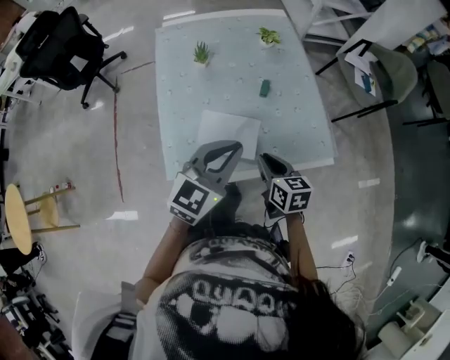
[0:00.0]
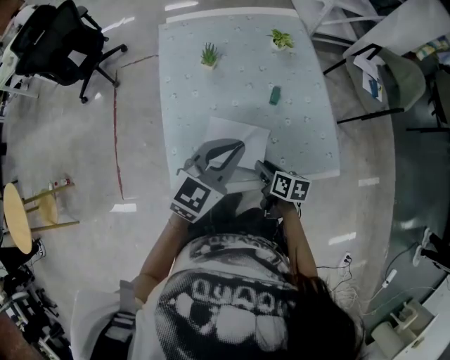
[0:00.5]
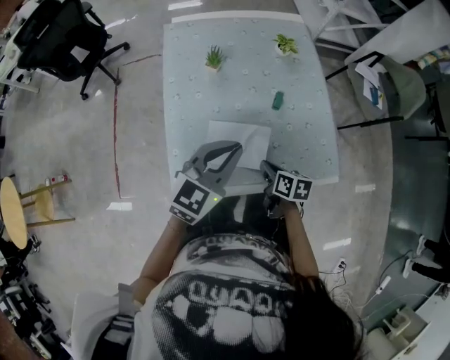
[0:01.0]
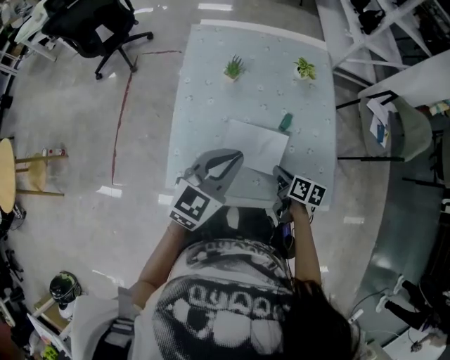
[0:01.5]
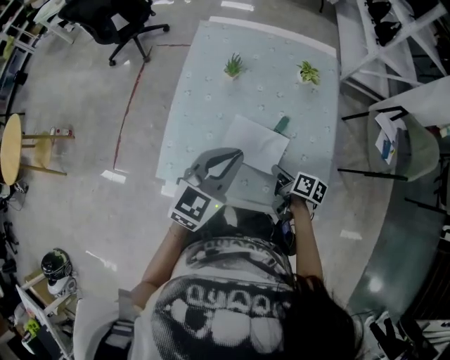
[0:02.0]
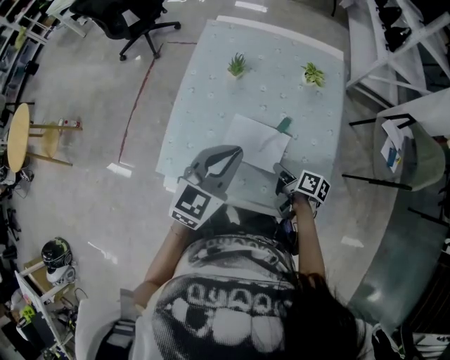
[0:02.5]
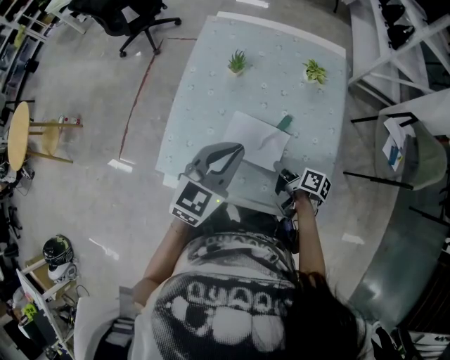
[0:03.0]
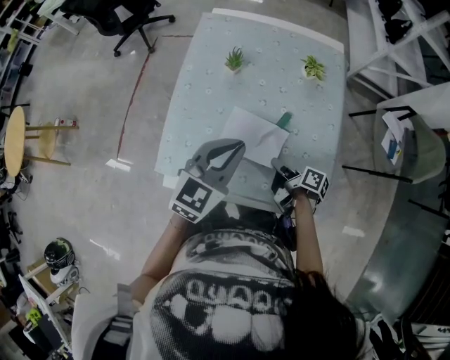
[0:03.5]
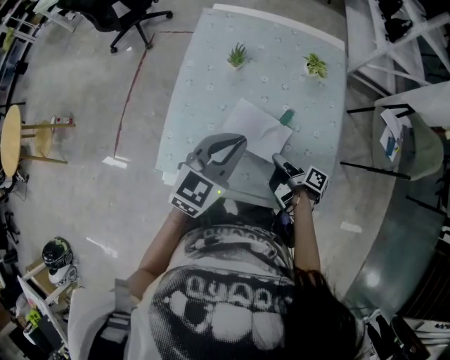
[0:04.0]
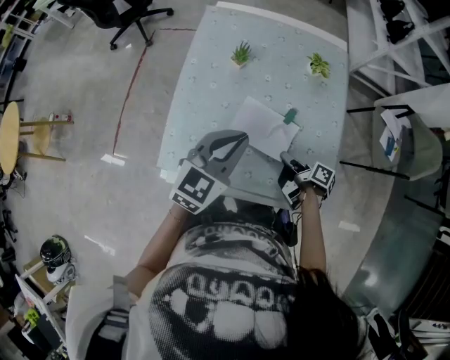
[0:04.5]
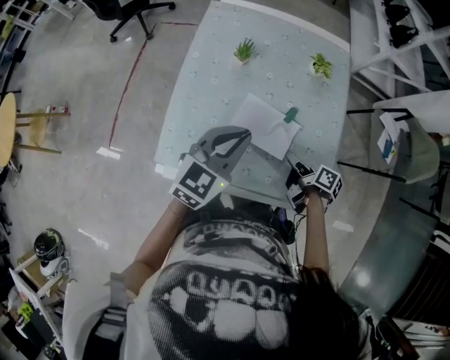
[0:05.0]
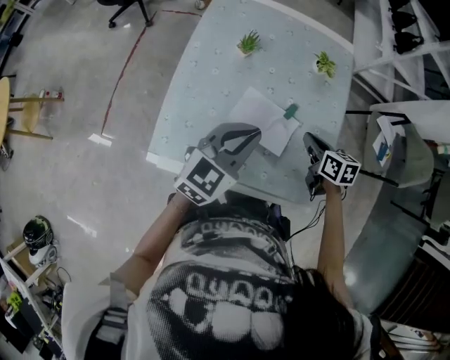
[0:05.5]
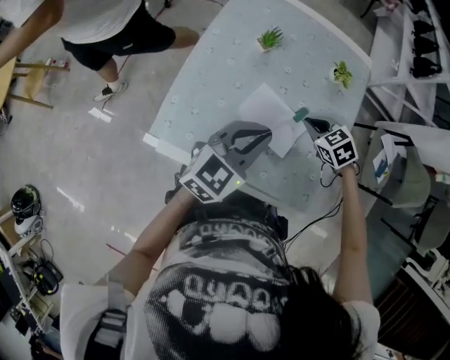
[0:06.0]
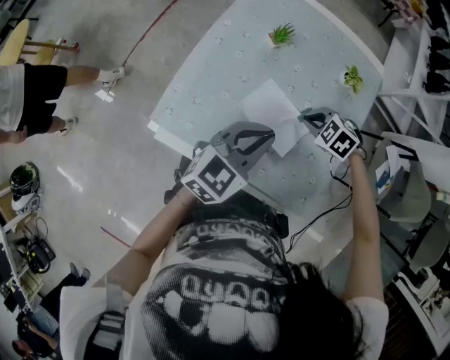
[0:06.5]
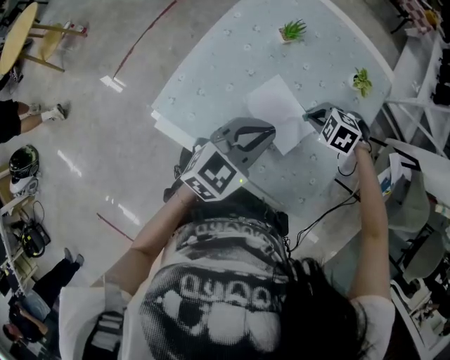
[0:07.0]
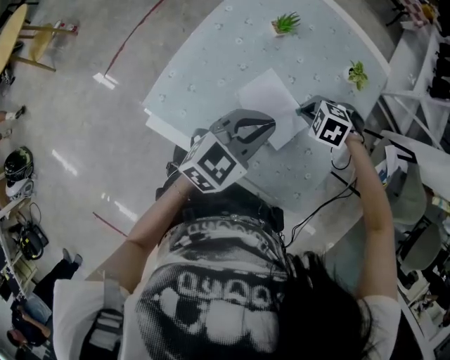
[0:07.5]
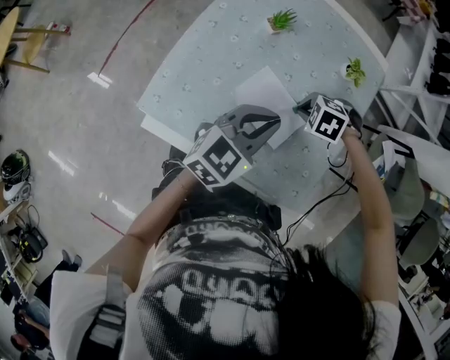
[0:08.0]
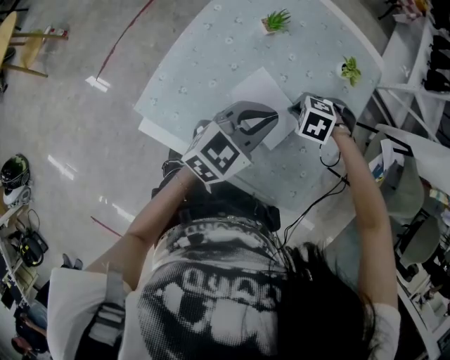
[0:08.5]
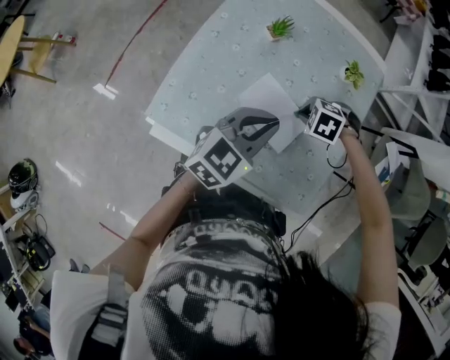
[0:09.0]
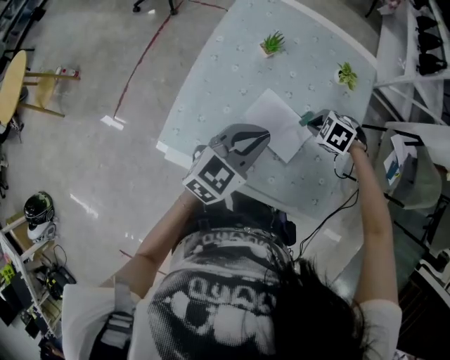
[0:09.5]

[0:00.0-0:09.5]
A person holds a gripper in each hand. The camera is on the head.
0:00.0 to 0:02.0: The left gripper is displaced forward by about 10 cm, and turns by some 20 degrees; the right gripper travels forward, downward and to the right by about 15 cm, and rotates about 40 degrees.
0:02.0 to 0:04.0: The right gripper changes its angle by approximately 30 degrees.
0:04.0 to 0:05.5: The right gripper shifts about 10 cm forward, to the right and upward, rolls counterclockwise, seen from behind, by some 60 degrees, and opens, then closes again.
0:05.5 to 0:07.5: The right gripper shifts by some 10 cm, and twists some 90 degrees counterclockwise, seen from behind; the left gripper shifts by approximately 5 cm.
0:07.5 to 0:09.5: The grippers stay close to where they were, moving slightly.

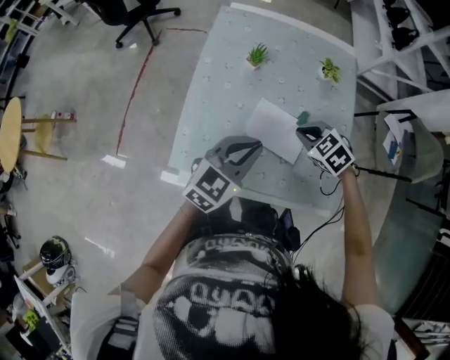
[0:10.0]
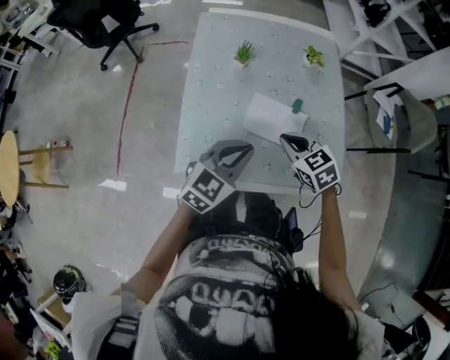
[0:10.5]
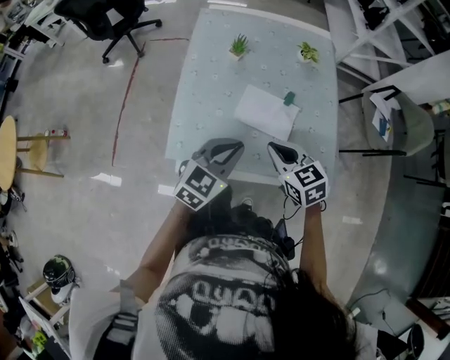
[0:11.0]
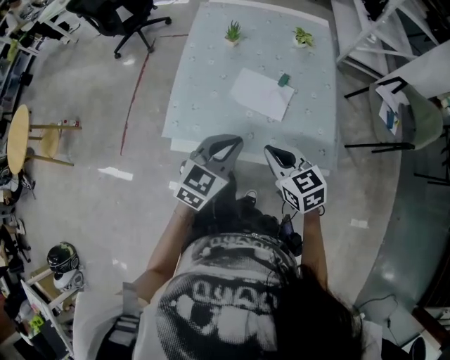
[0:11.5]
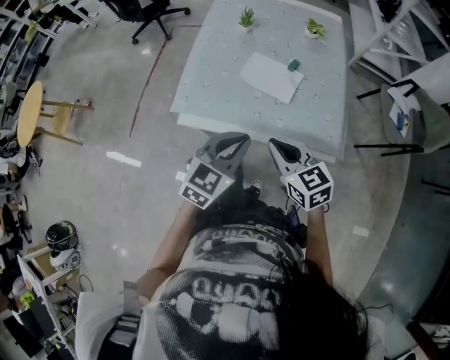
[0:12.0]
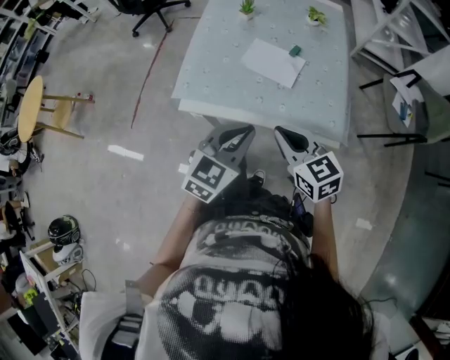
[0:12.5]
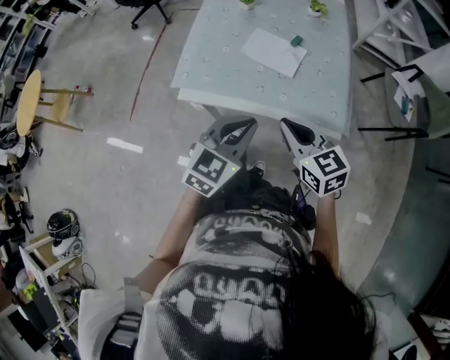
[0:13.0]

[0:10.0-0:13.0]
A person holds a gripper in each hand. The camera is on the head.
0:10.0 to 0:11.5: The right gripper is displaced backward by roughly 20 cm, and turns by some 40 degrees, while the left gripper heads backward, covering some 15 cm.
0:11.5 to 0:13.0: Both grippers move backward, some 10 cm.

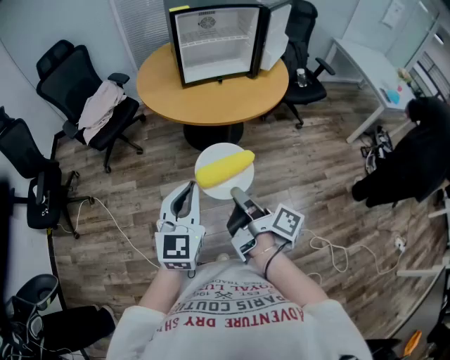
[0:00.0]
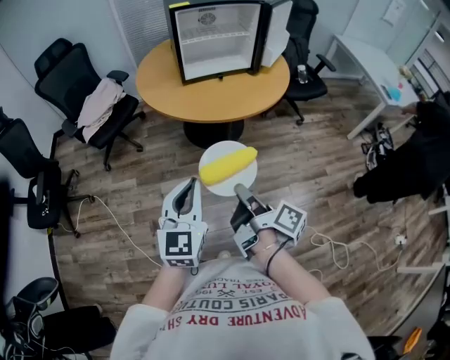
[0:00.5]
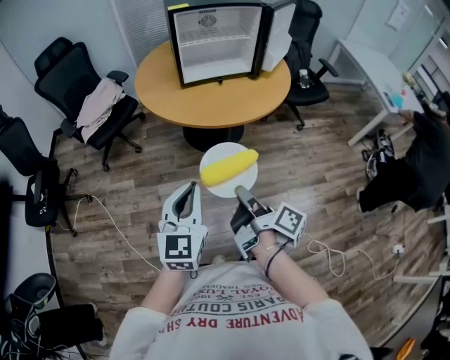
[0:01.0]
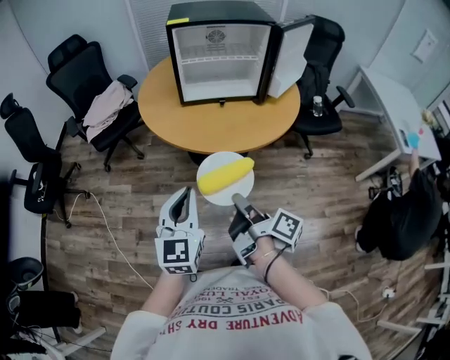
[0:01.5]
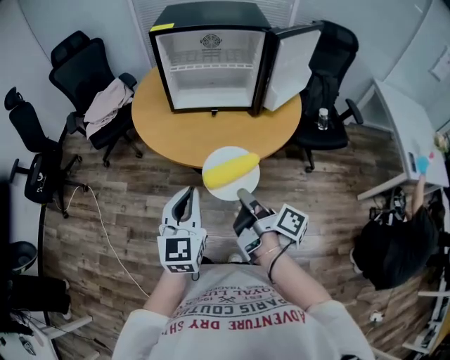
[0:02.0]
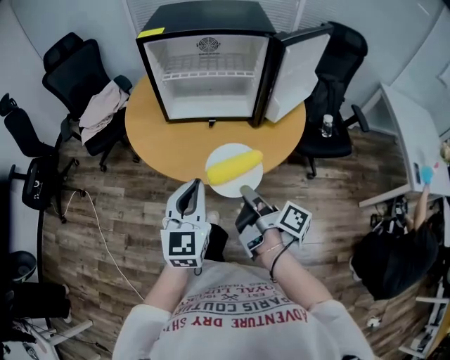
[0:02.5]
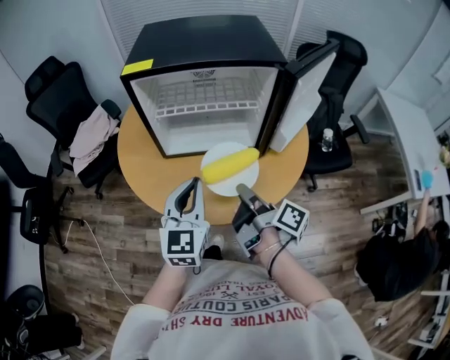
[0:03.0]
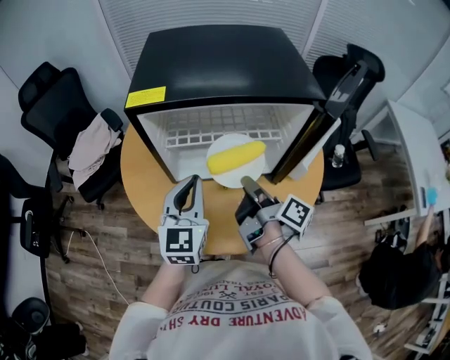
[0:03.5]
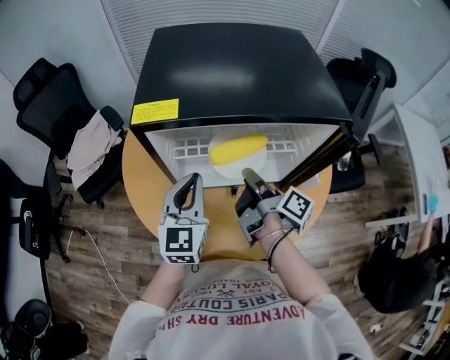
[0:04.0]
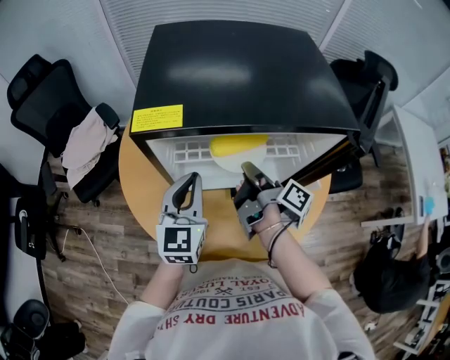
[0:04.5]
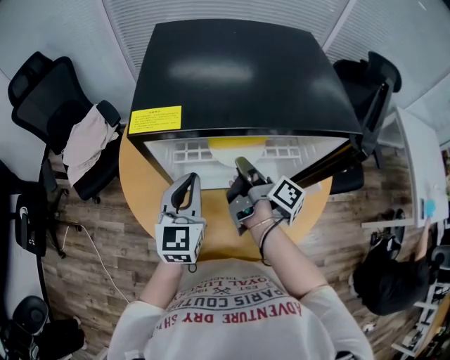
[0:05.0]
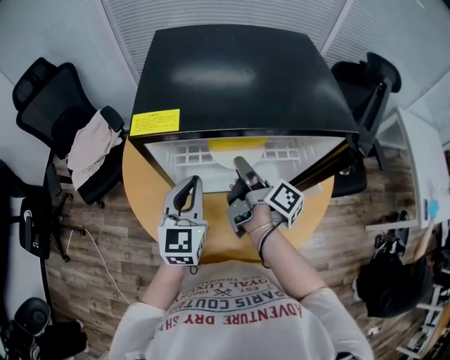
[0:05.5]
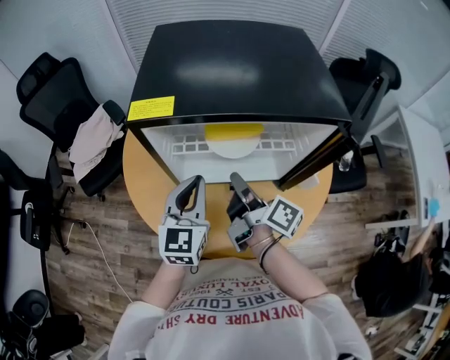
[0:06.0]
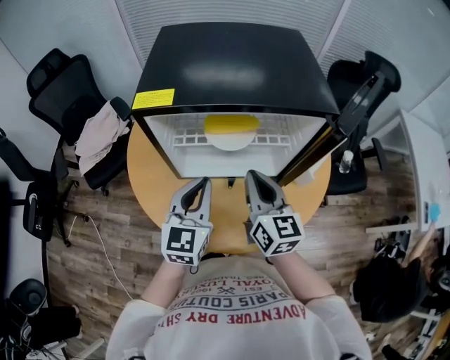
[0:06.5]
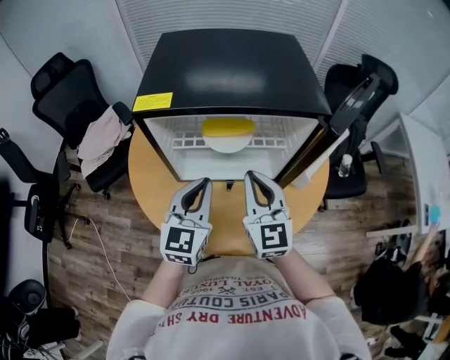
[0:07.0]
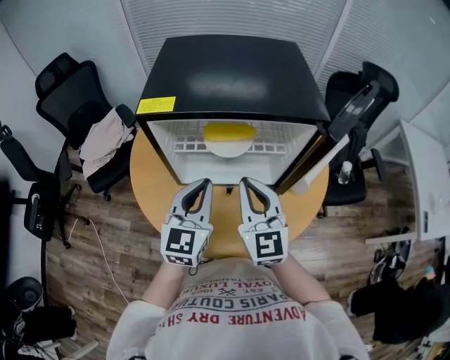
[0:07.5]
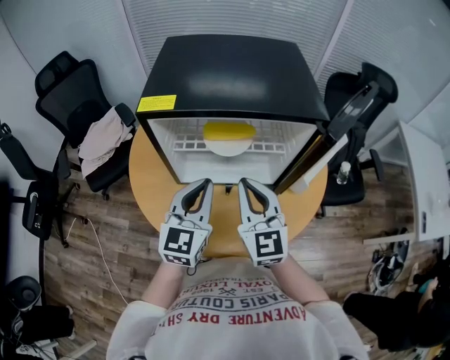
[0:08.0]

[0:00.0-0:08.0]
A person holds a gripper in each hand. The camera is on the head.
0:00.0 to 0:02.0: The left gripper ends up about 30 cm from where it was.
0:02.0 to 0:04.0: The left gripper shifts by some 40 cm.
0:06.0 to 0:08.0: The left gripper moves roughly 5 cm.

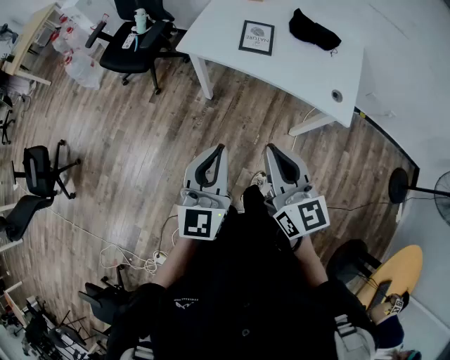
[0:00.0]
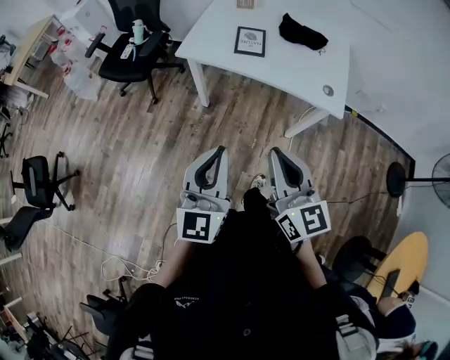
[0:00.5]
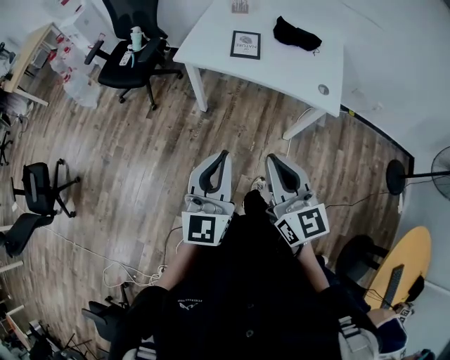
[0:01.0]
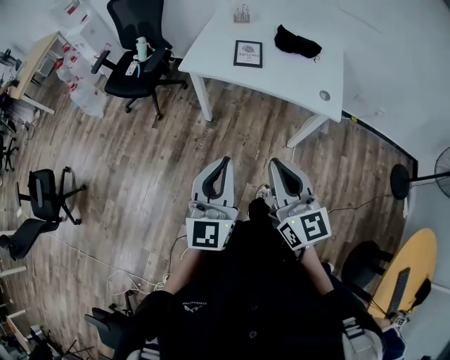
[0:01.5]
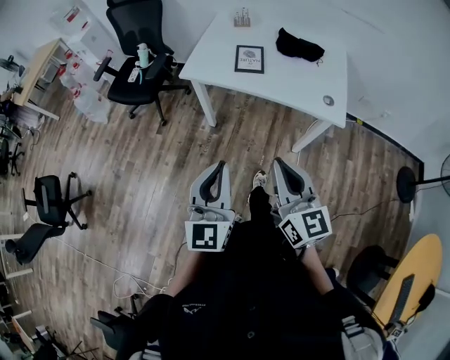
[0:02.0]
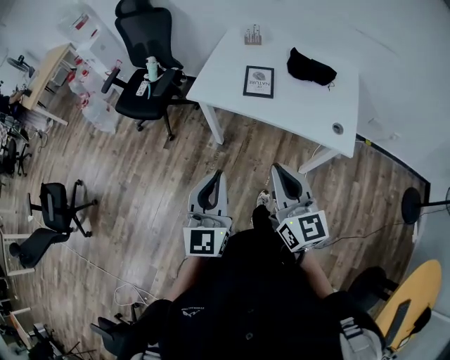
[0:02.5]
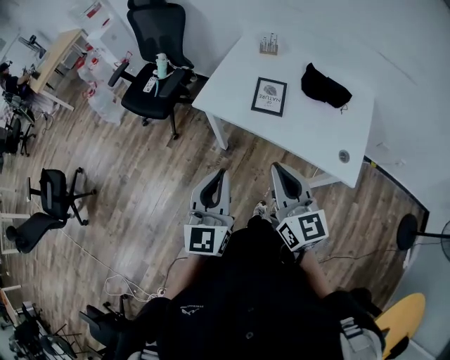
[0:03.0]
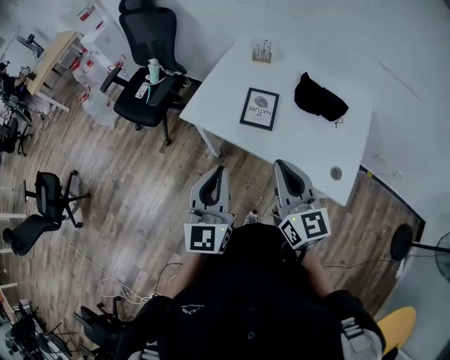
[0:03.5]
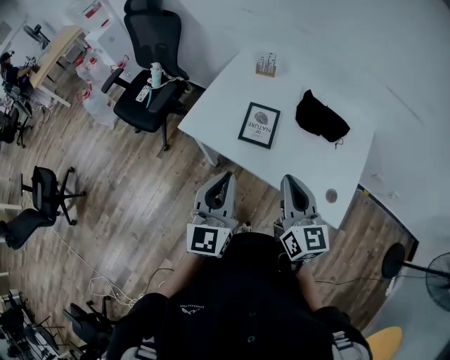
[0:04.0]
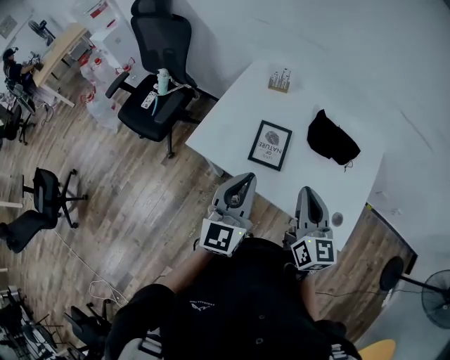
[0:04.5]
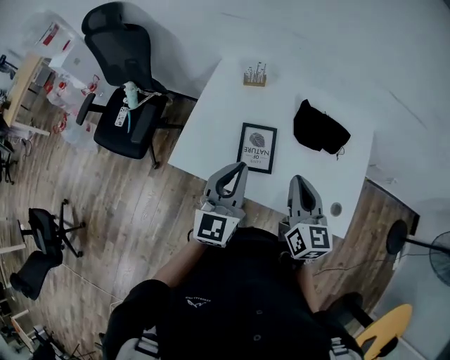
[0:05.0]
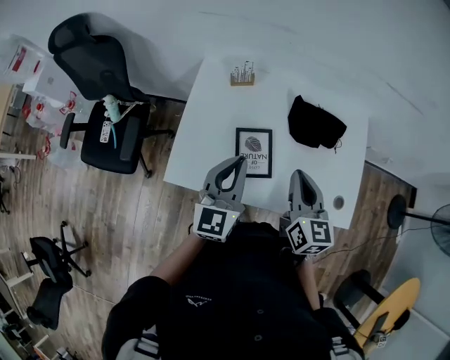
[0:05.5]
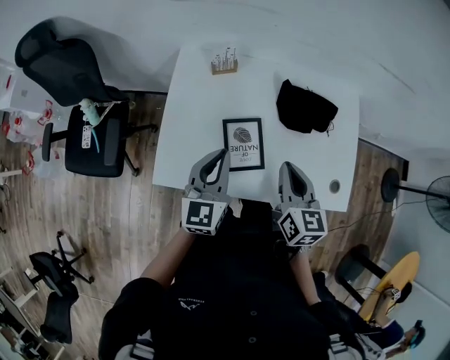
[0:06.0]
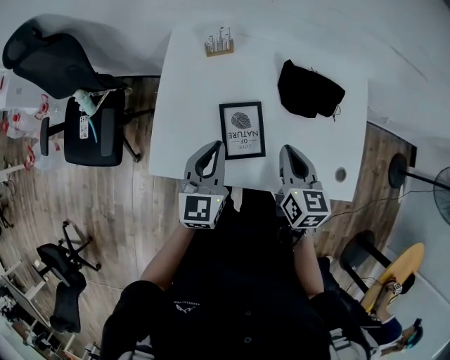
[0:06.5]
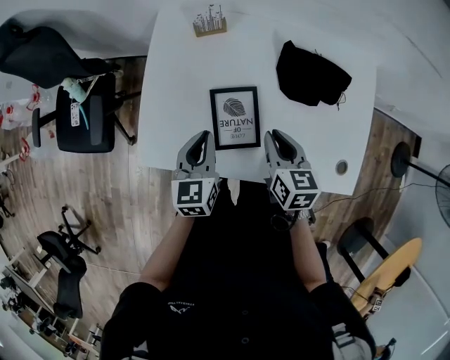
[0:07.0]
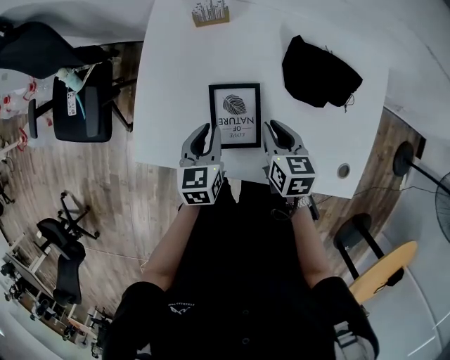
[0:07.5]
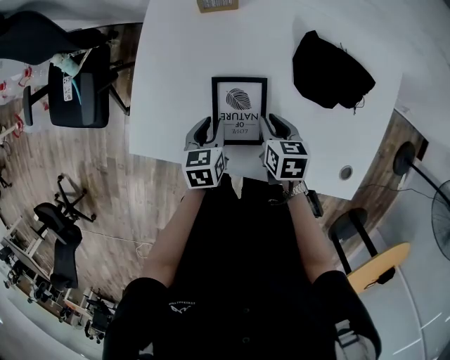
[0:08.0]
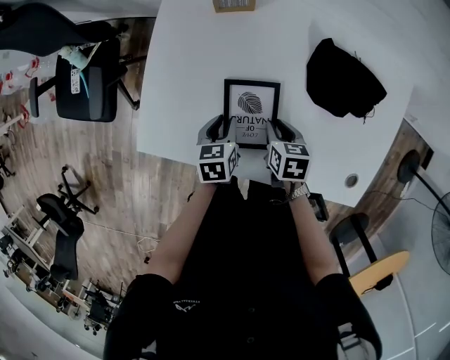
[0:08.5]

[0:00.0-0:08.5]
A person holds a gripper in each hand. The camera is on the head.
0:00.0 to 0:02.0: The grippers both shift backward by approximately 5 cm.
0:02.0 to 0:04.0: The left gripper shifts roughly 35 cm forward, while the right gripper shifts roughly 40 cm forward and to the right.
0:04.0 to 0:06.5: The left gripper shifts by approximately 35 cm, and swivels about 30 degrees. The right gripper shifts by roughly 30 cm, and changes its angle by some 30 degrees.
0:06.5 to 0:08.5: Both grippers travel together downward, about 25 cm. The right gripper points its fingers approximately 30 degrees further downward, and opens. Meanwhile the left gripper points its fingers some 40 degrees further downward, and opens up.
